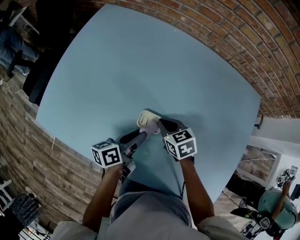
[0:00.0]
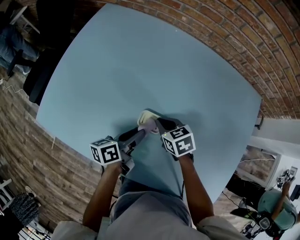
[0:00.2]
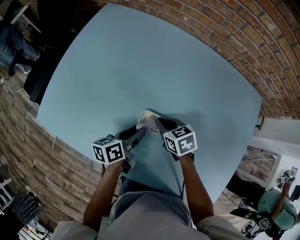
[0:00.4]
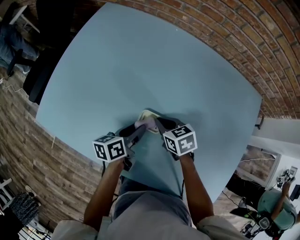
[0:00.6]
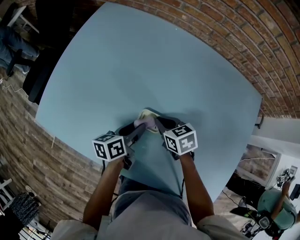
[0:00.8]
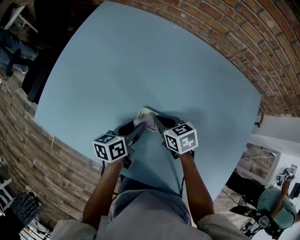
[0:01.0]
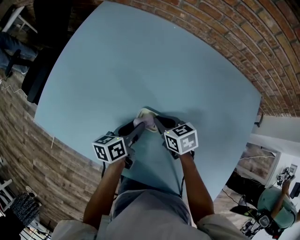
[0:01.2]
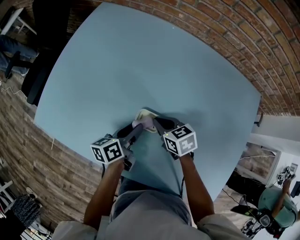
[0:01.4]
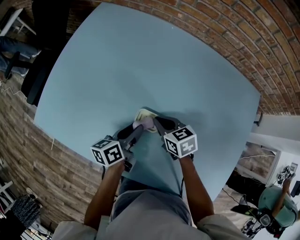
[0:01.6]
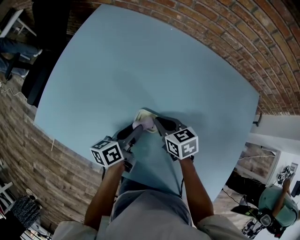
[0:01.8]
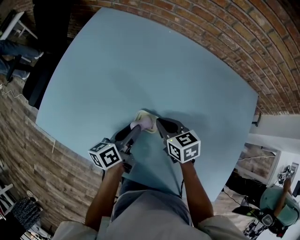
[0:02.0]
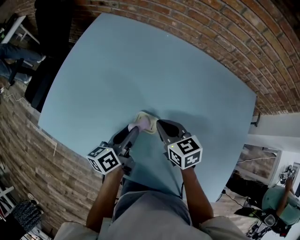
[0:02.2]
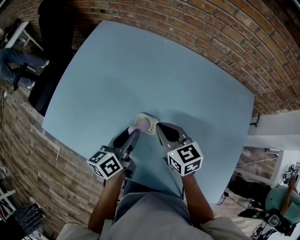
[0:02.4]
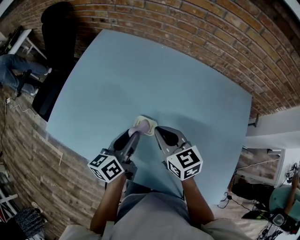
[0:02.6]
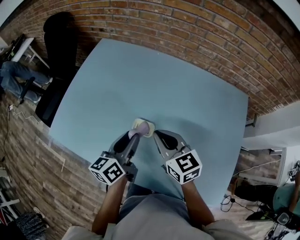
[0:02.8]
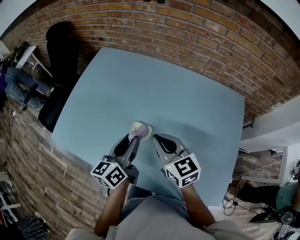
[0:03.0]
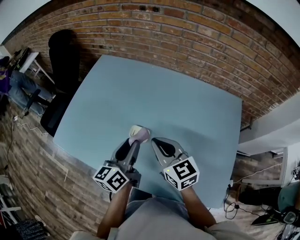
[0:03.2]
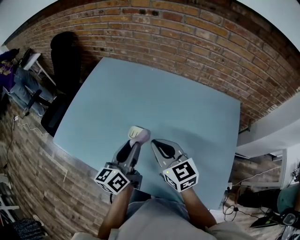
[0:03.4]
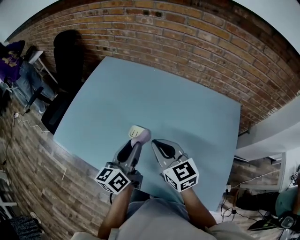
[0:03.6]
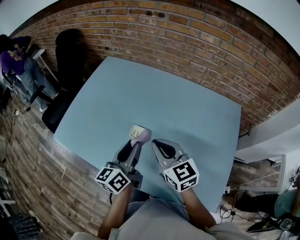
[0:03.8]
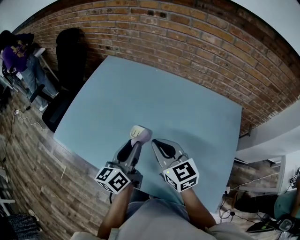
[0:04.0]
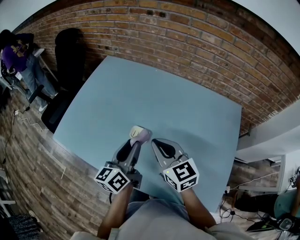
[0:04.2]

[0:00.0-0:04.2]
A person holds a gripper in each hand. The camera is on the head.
0:00.0 to 0:01.4: The grippers stay close to where they were, moving slightly.
0:01.4 to 0:02.8: Both grippers move upward, approximately 20 cm. The right gripper changes its angle by approximately 30 degrees. The left gripper swivels roughly 20 degrees.
0:02.8 to 0:04.2: Both grippers move upward, roughly 5 cm.

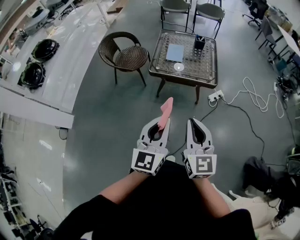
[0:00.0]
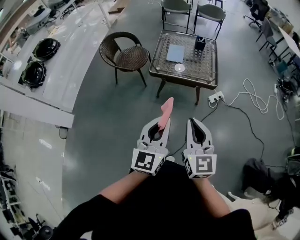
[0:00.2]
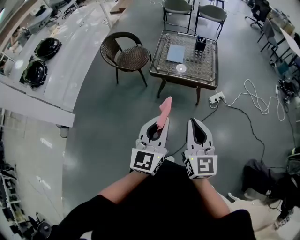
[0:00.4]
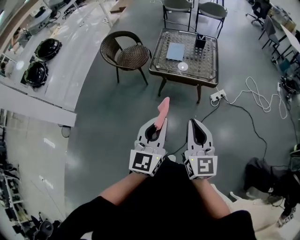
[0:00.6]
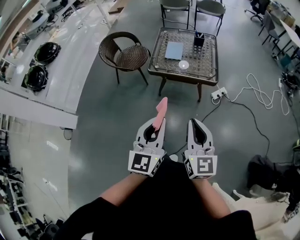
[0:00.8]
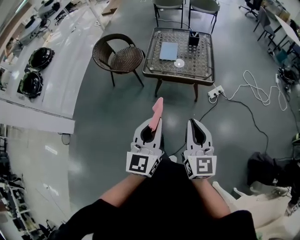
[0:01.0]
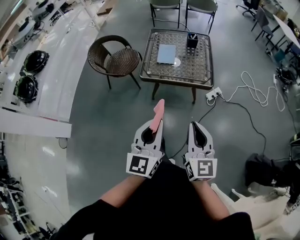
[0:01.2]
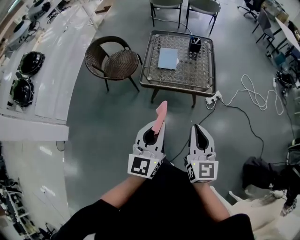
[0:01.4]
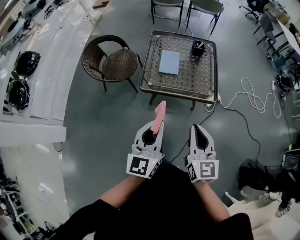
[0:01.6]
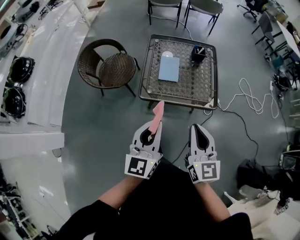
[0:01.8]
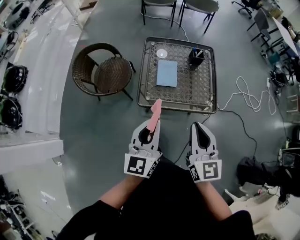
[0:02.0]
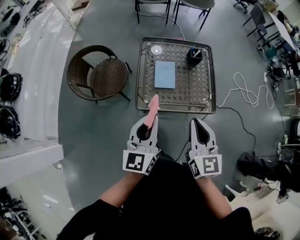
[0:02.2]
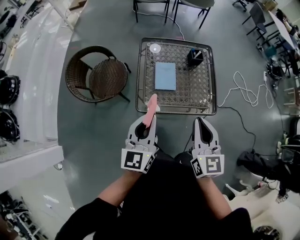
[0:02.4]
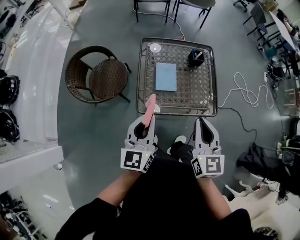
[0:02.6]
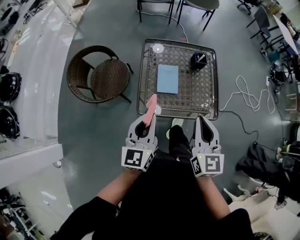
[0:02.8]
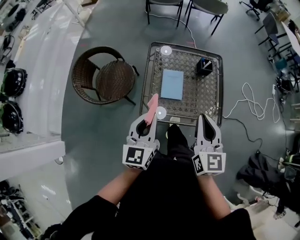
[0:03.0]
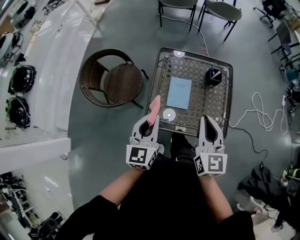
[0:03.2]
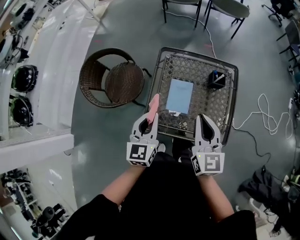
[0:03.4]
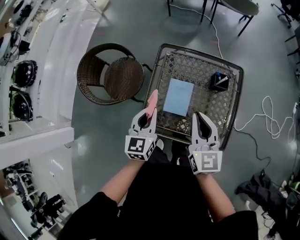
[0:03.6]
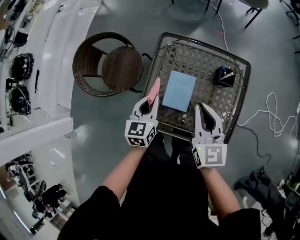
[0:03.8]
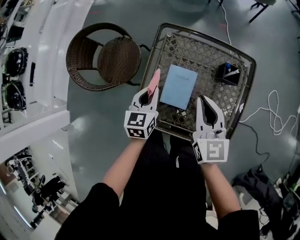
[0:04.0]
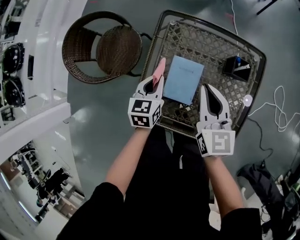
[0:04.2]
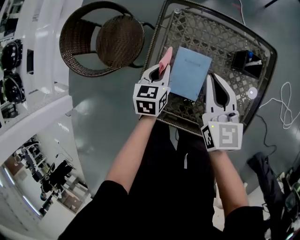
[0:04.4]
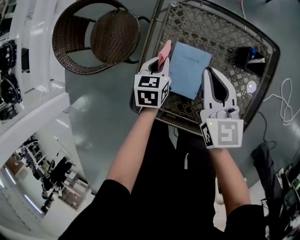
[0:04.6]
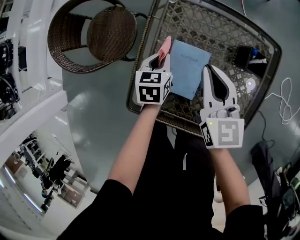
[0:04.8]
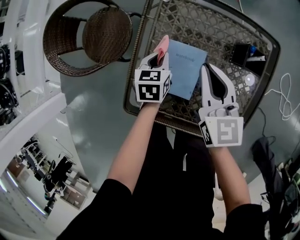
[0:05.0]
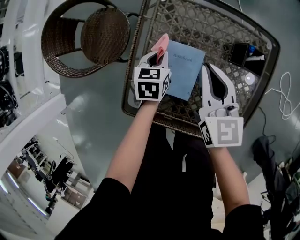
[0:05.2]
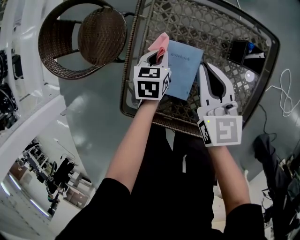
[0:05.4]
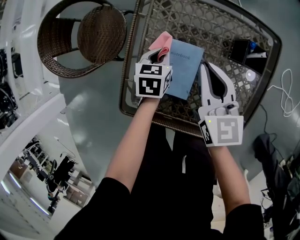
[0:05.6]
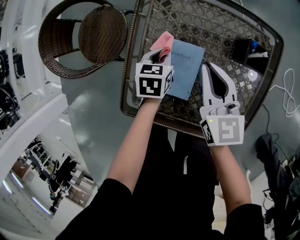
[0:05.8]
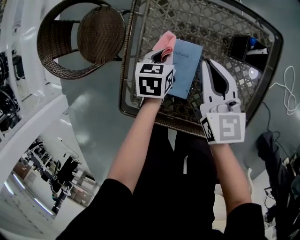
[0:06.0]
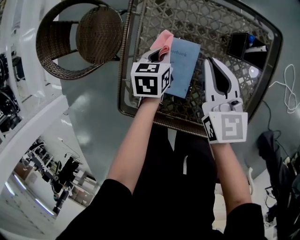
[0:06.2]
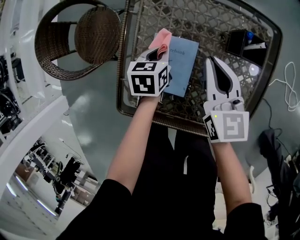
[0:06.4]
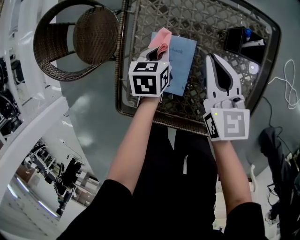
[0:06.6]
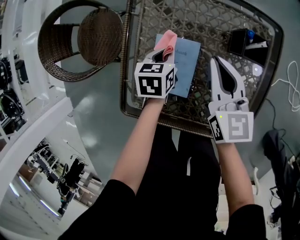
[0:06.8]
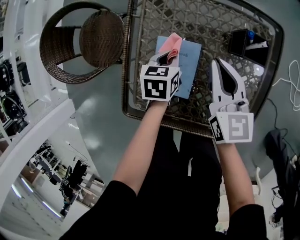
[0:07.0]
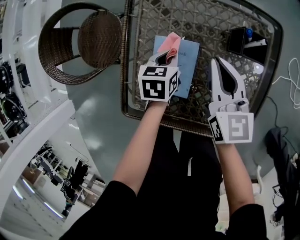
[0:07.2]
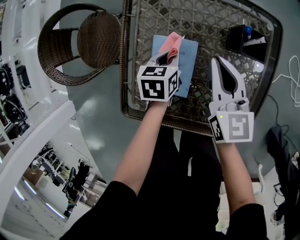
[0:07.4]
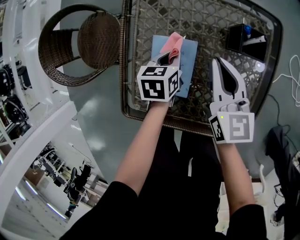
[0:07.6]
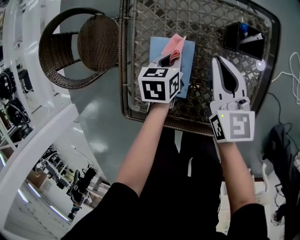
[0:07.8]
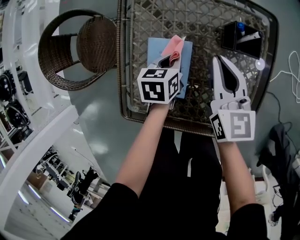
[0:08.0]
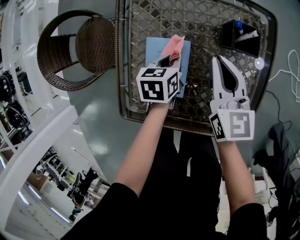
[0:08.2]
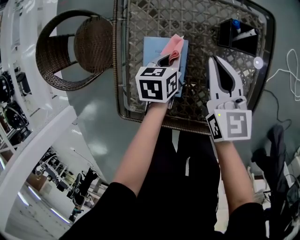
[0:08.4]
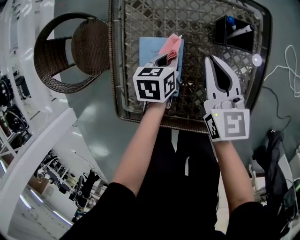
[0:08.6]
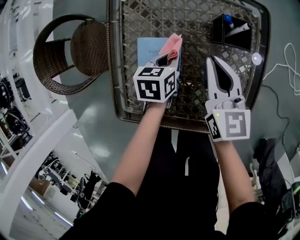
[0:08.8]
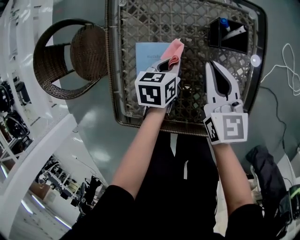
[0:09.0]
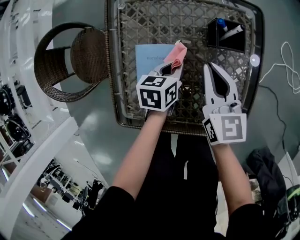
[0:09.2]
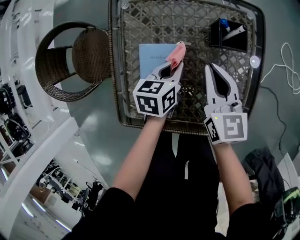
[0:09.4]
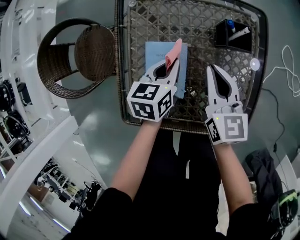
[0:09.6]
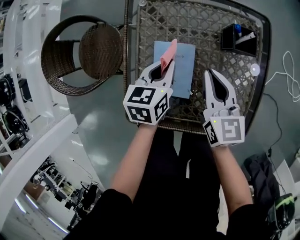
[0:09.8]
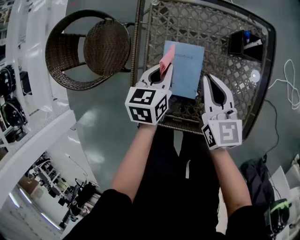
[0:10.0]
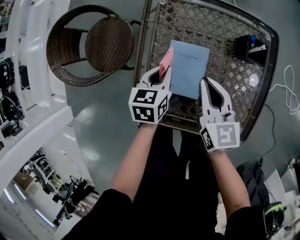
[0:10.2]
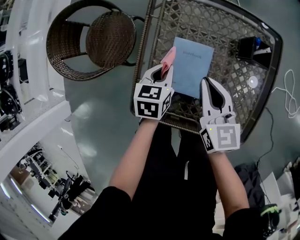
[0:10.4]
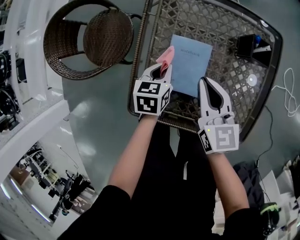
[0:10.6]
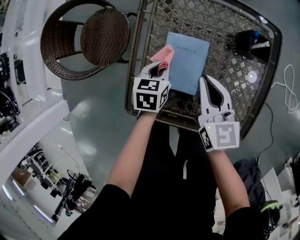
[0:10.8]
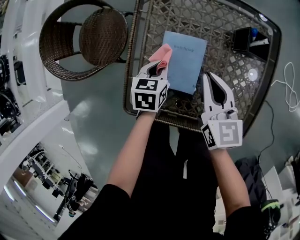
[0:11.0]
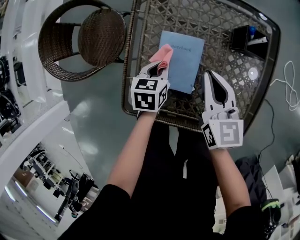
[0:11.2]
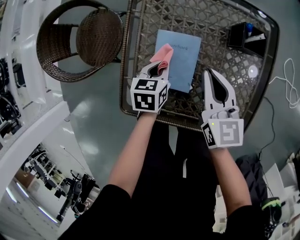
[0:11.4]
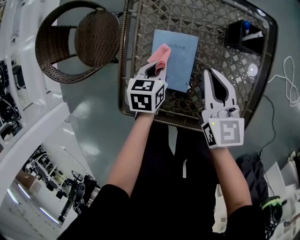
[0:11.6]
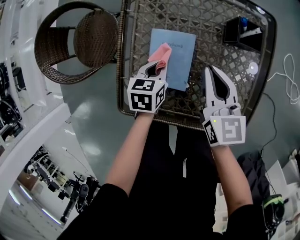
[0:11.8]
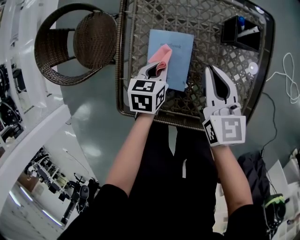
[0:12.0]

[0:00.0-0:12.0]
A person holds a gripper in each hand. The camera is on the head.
0:00.0 to 0:01.6: Both grippers travel together forward, some 25 cm.
0:01.6 to 0:03.0: Both grippers travel together forward, roughly 30 cm.
0:03.0 to 0:04.4: The left gripper moves downward and forward, roughly 40 cm, and points its fingers approximately 30 degrees further downward, while the right gripper travels forward and downward by approximately 35 cm, and rotates about 20 degrees.
0:04.4 to 0:06.0: The left gripper goes approximately 10 cm downward and to the right. Meanwhile the right gripper moves downward, approximately 10 cm.
0:06.0 to 0:07.6: The right gripper changes place by roughly 5 cm.
0:07.6 to 0:09.0: The left gripper goes roughly 5 cm to the right.
0:09.0 to 0:10.4: The grippers both shift to the left and backward by roughly 15 cm.
0:10.4 to 0:12.0: Both grippers move to the right, approximately 5 cm.

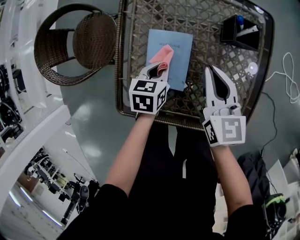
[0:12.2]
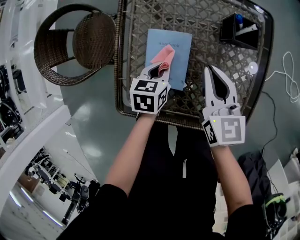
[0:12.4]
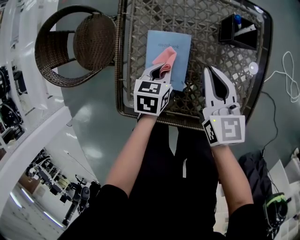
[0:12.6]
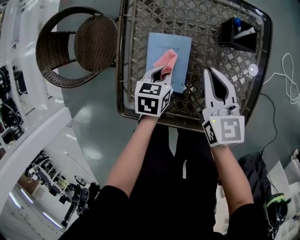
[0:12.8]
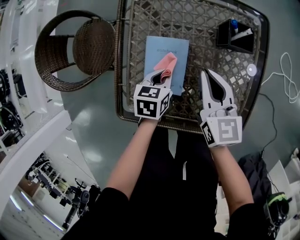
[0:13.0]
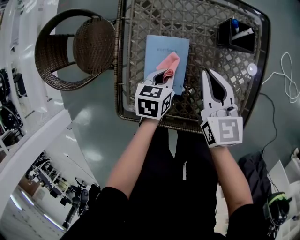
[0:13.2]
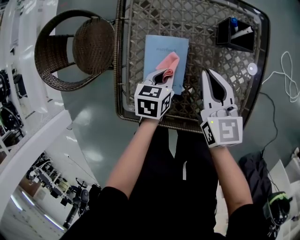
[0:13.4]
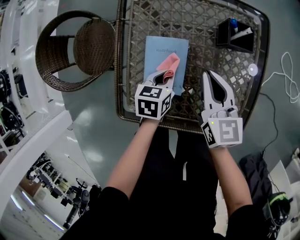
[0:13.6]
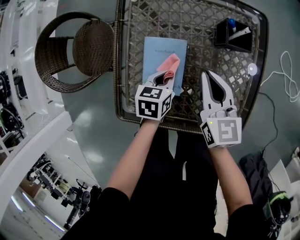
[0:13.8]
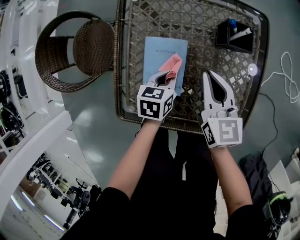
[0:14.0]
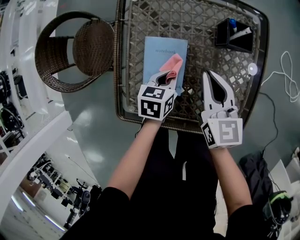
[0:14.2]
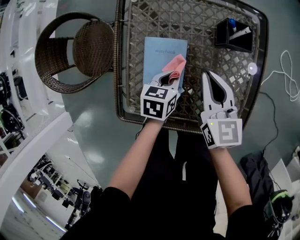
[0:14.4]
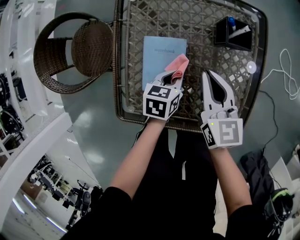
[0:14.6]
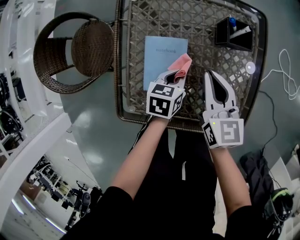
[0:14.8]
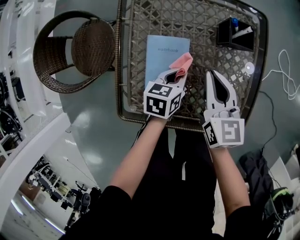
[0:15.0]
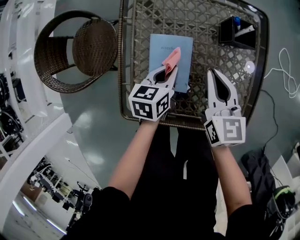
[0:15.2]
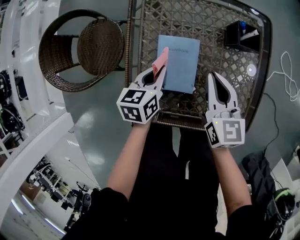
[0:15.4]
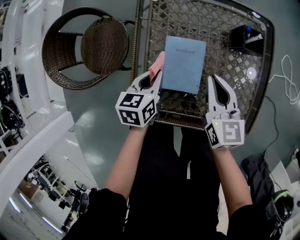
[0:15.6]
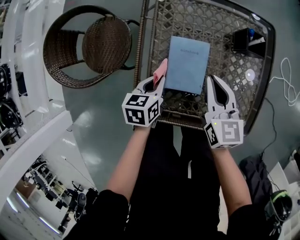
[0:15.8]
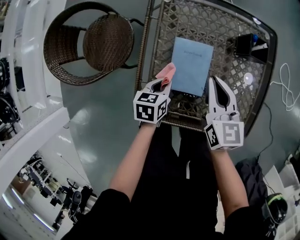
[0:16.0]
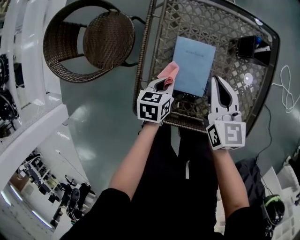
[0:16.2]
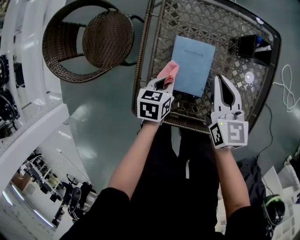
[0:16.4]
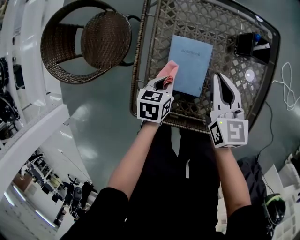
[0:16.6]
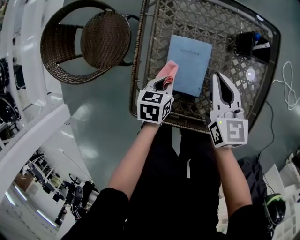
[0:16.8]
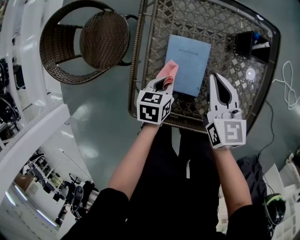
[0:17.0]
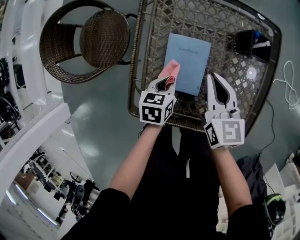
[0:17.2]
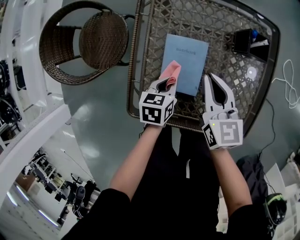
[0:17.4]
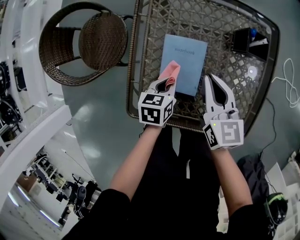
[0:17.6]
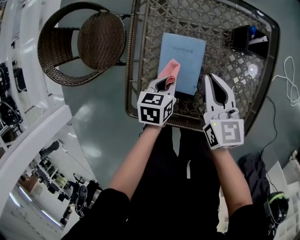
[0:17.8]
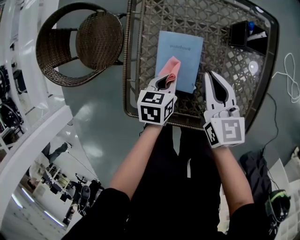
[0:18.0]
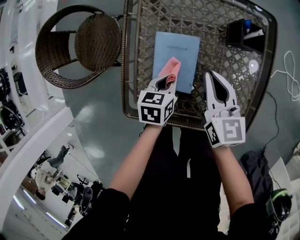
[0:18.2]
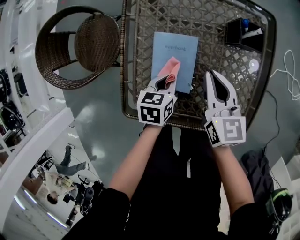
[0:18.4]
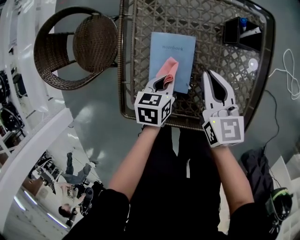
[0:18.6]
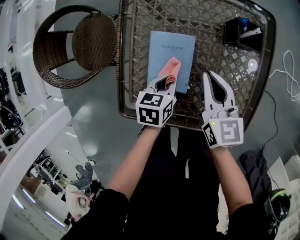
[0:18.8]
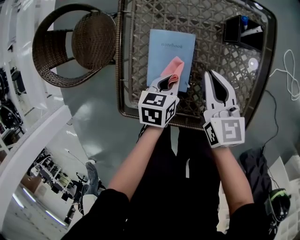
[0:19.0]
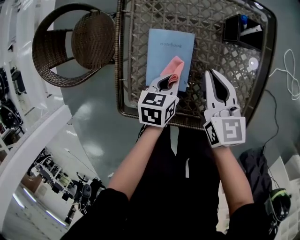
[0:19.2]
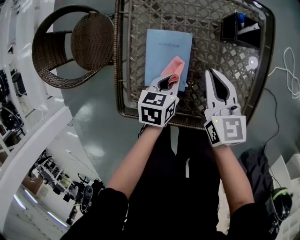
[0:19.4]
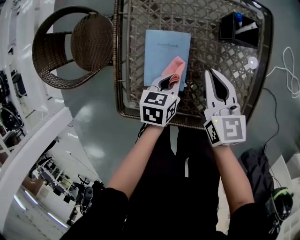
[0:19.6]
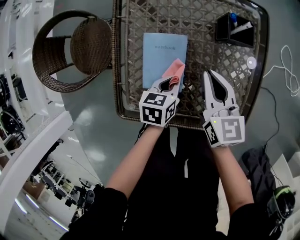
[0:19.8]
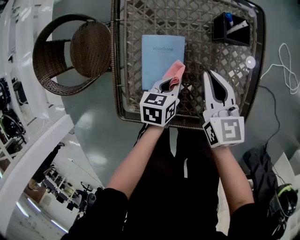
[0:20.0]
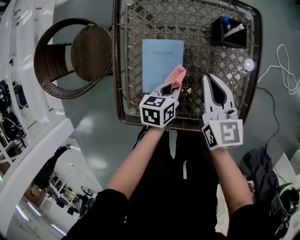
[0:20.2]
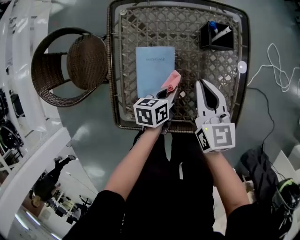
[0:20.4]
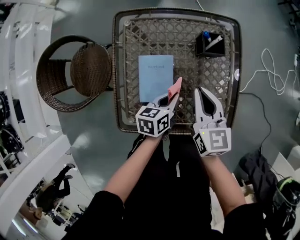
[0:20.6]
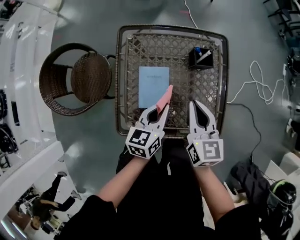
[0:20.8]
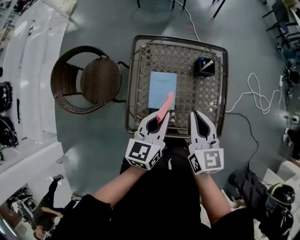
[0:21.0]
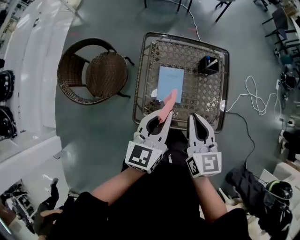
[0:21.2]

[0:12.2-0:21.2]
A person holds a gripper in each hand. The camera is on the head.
0:12.2 to 0:13.8: There are only small adjustments of the grippers.
0:13.8 to 0:15.2: The grippers stay close to where they were, moving slightly.
0:15.2 to 0:16.6: The left gripper goes approximately 10 cm to the left and backward.
0:16.6 to 0:18.2: The left gripper goes approximately 5 cm to the right.
0:18.2 to 0:19.8: The left gripper is displaced to the right by about 5 cm.
0:19.8 to 0:21.2: The right gripper heads upward and backward, covering roughly 30 cm; the left gripper goes approximately 40 cm upward, and tips its fingers upward by some 40 degrees.
